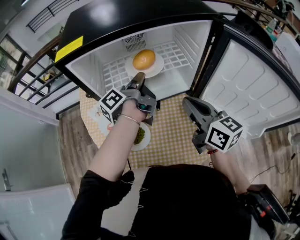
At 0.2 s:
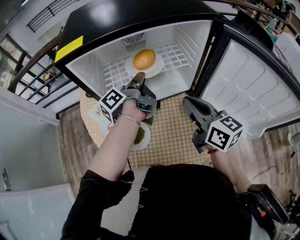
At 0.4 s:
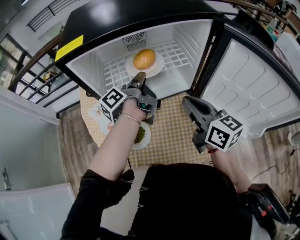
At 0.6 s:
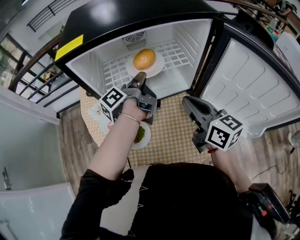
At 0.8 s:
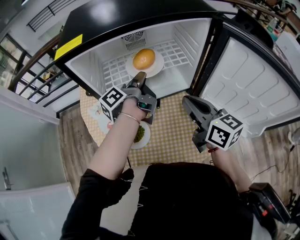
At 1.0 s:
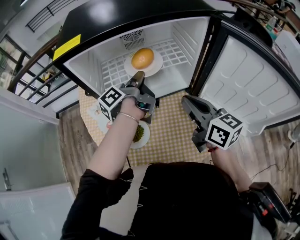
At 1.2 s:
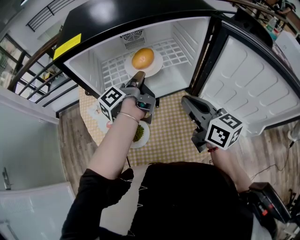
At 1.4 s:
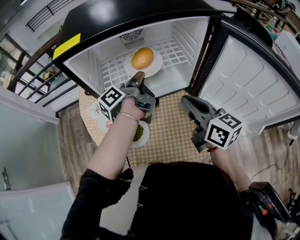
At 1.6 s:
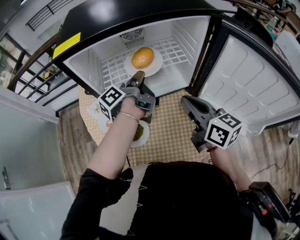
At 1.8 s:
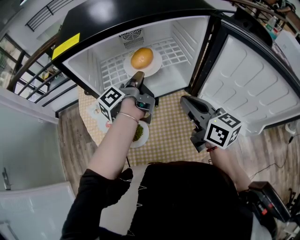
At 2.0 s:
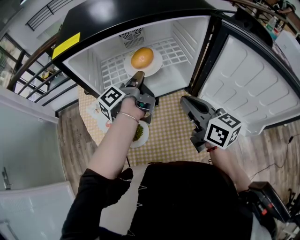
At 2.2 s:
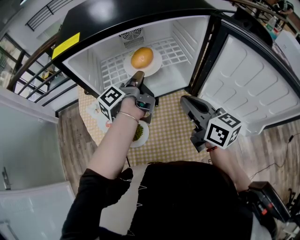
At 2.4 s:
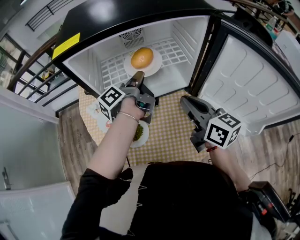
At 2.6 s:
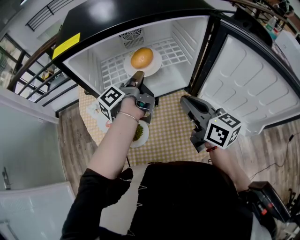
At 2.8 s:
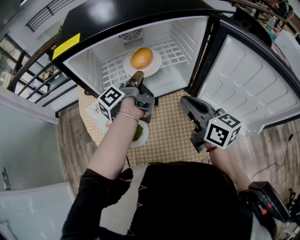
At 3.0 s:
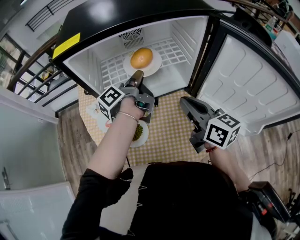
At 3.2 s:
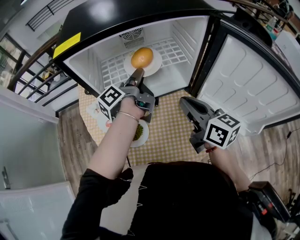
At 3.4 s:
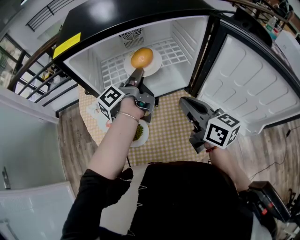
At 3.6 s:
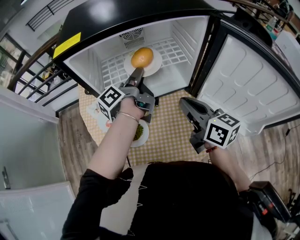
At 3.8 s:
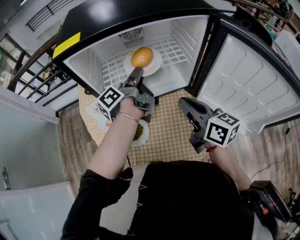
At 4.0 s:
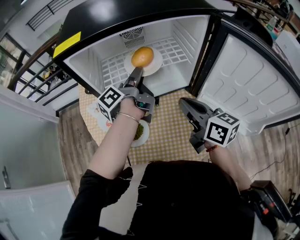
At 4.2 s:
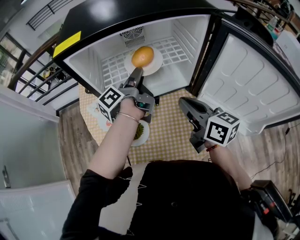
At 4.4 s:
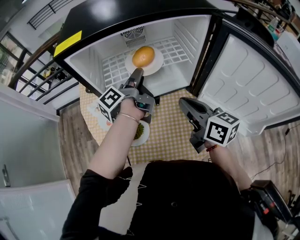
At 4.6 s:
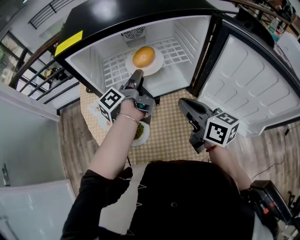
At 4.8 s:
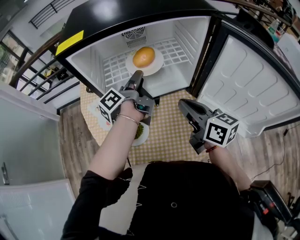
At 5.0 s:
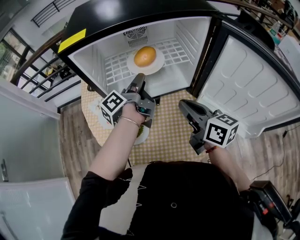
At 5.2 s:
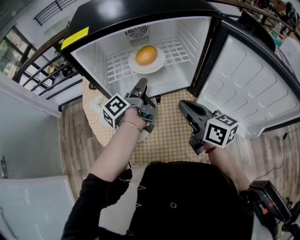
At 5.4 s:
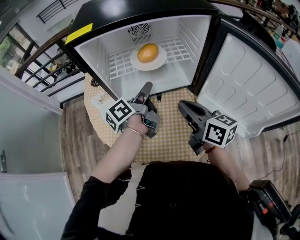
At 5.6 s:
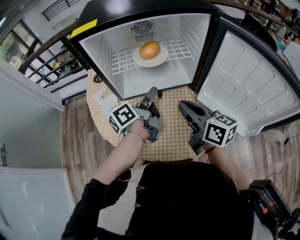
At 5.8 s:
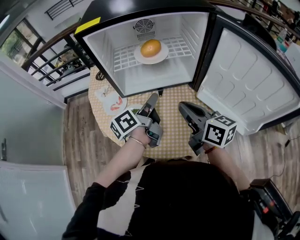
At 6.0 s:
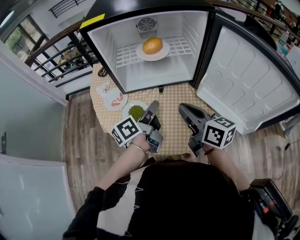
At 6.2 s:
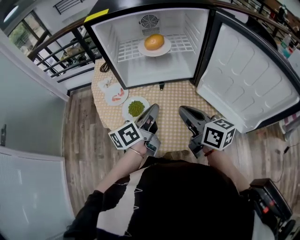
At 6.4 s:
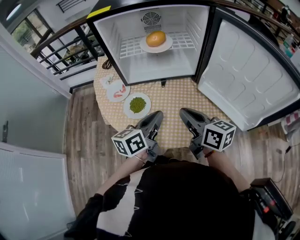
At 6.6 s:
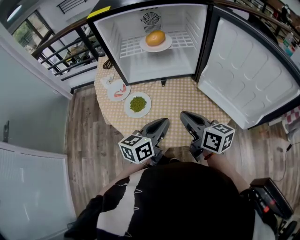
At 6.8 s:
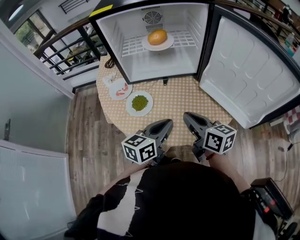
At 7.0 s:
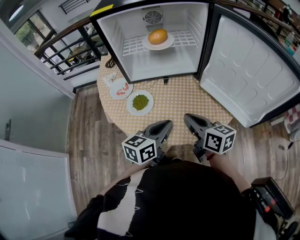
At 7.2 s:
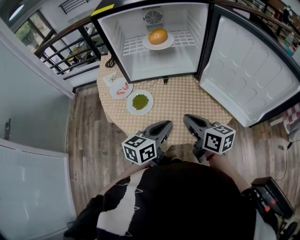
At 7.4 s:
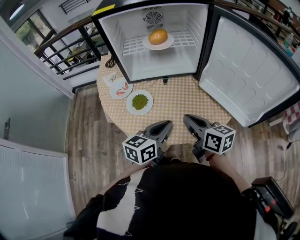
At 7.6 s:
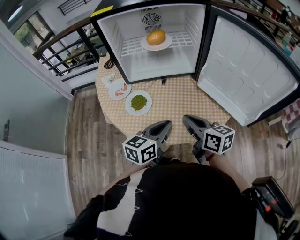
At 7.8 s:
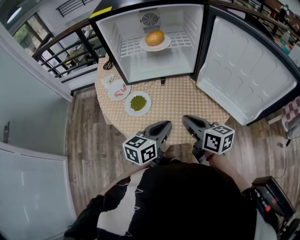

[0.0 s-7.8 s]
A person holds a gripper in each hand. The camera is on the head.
4.6 to 6.2 s: The right gripper moves roughly 10 cm.
6.2 to 7.8 s: The right gripper ends up approximately 10 cm from where it was.

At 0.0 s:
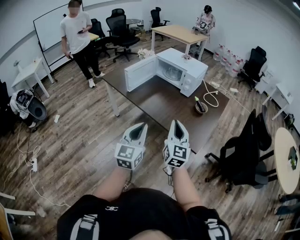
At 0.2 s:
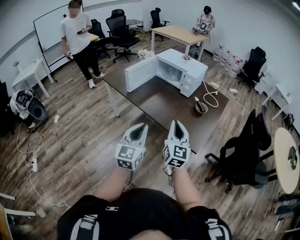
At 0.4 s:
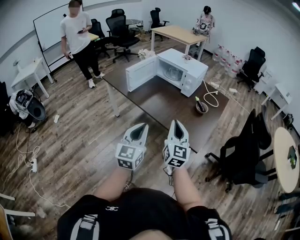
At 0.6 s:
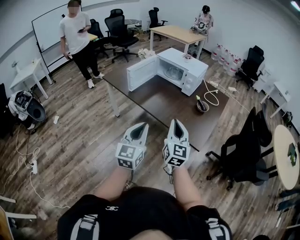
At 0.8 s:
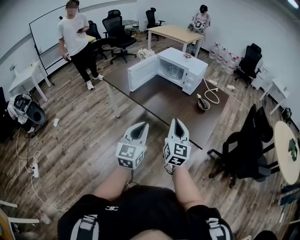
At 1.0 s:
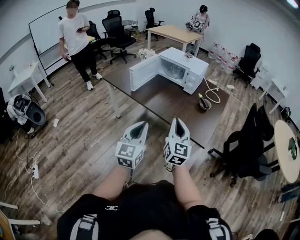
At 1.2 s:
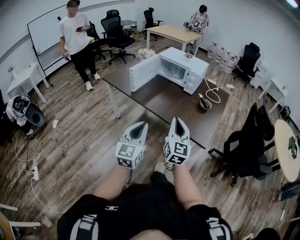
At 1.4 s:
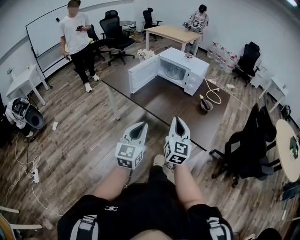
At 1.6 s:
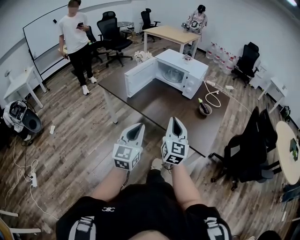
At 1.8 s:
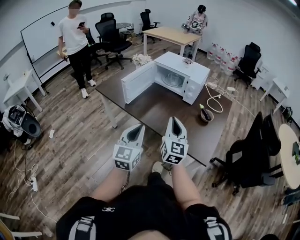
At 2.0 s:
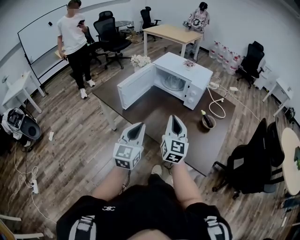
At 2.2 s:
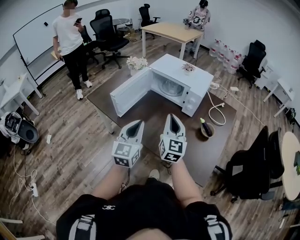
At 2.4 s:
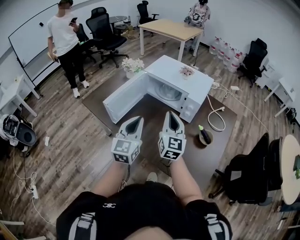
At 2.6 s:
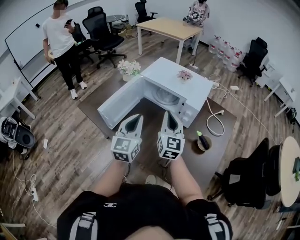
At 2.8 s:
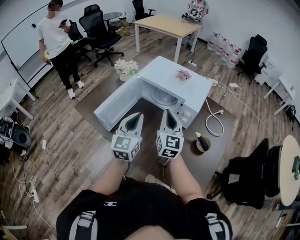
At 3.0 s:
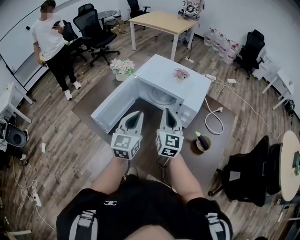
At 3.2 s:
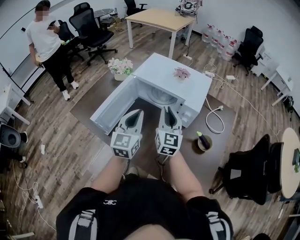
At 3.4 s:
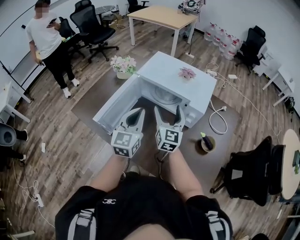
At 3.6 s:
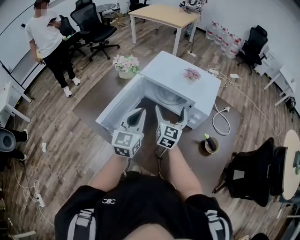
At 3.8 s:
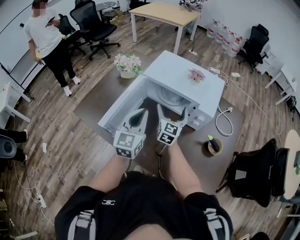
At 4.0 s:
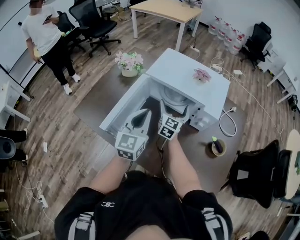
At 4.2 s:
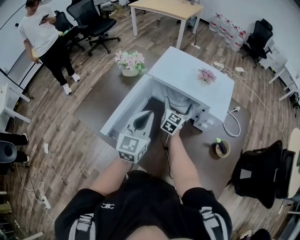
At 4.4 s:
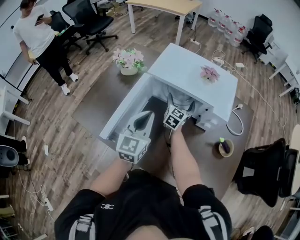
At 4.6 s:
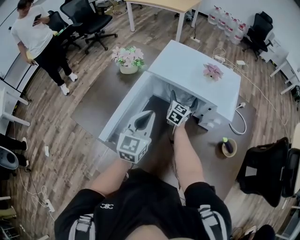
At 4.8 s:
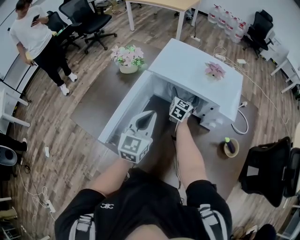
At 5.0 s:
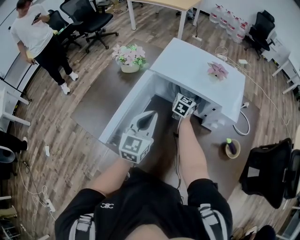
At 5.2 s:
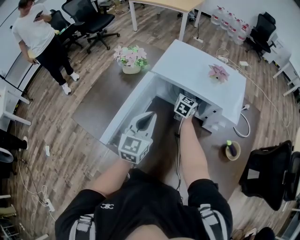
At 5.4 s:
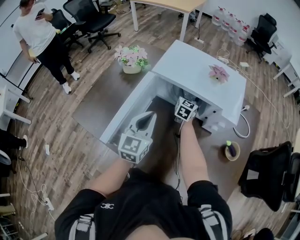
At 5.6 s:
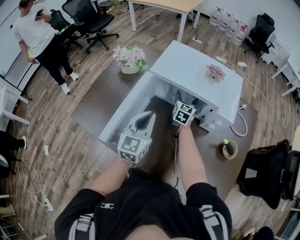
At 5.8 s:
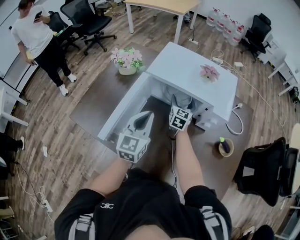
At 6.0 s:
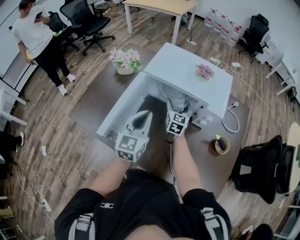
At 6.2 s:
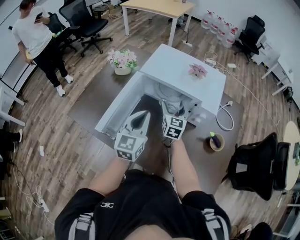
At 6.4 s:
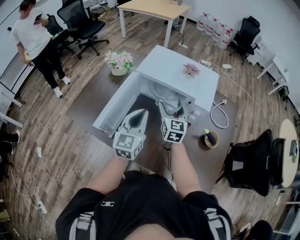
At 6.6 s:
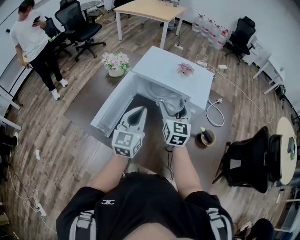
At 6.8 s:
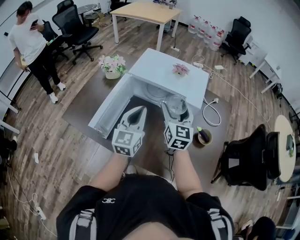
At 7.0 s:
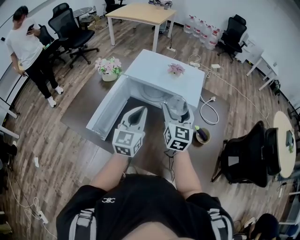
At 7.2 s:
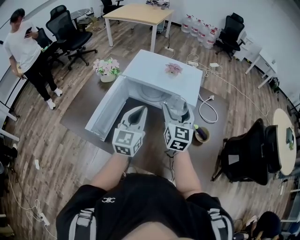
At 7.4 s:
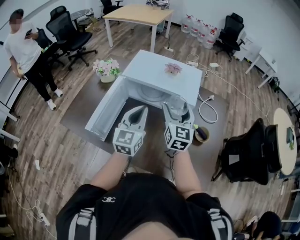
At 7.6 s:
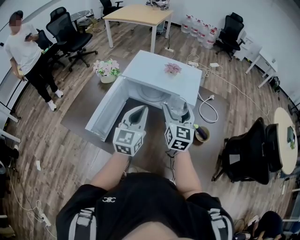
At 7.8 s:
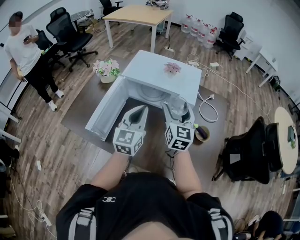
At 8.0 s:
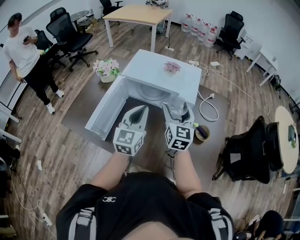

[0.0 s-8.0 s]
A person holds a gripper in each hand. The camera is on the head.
0.0 to 1.6 s: The right gripper heads to the left and forward, covering approximately 10 cm; the left gripper goes approximately 10 cm to the left.
1.6 to 3.2 s: The pair of grippers is taken forward, approximately 50 cm.
3.2 to 4.8 s: The right gripper shifts roughly 35 cm forward and downward, rotates roughly 30 degrees, and opens its fingers. Meanwhile the left gripper heads downward, to the left and forward, covering approximately 15 cm.
4.8 to 6.4 s: The left gripper moves upward and backward, approximately 10 cm; the right gripper goes some 25 cm backward and upward, and changes its angle by roughly 20 degrees.
6.4 to 8.0 s: The right gripper heads to the right, upward and backward, covering approximately 15 cm; the left gripper is displaced to the right by about 5 cm.

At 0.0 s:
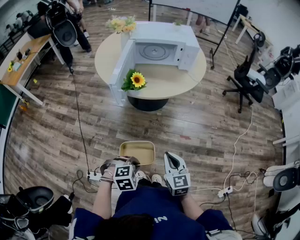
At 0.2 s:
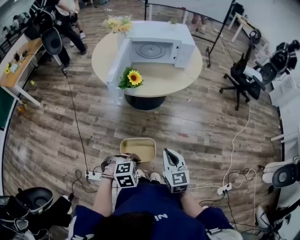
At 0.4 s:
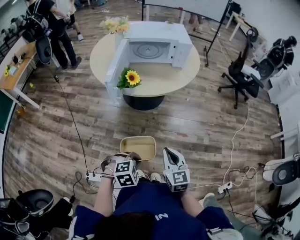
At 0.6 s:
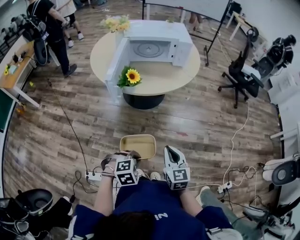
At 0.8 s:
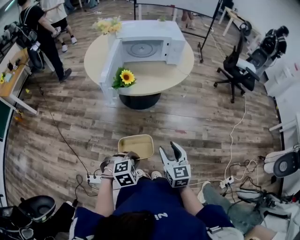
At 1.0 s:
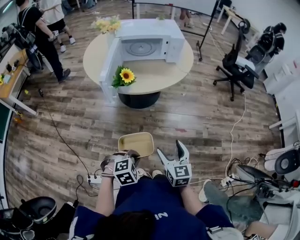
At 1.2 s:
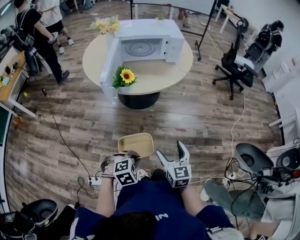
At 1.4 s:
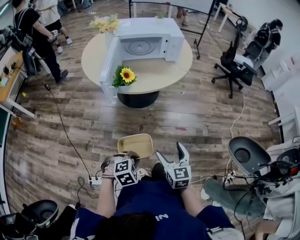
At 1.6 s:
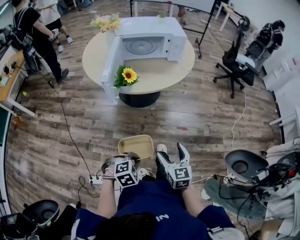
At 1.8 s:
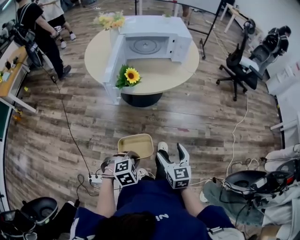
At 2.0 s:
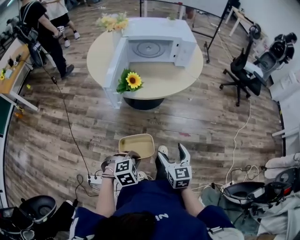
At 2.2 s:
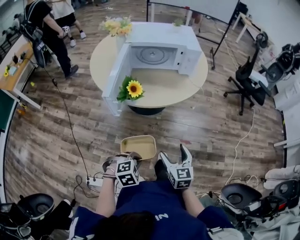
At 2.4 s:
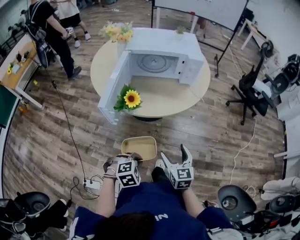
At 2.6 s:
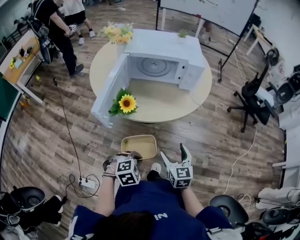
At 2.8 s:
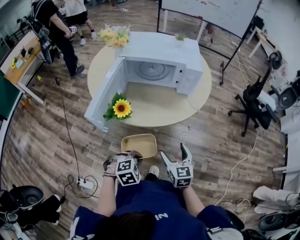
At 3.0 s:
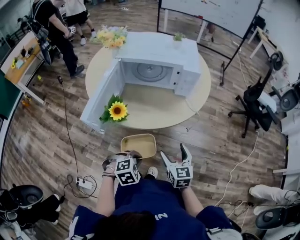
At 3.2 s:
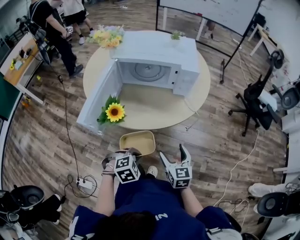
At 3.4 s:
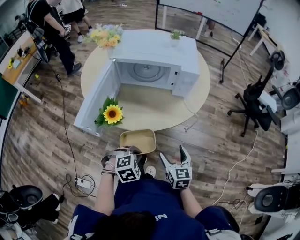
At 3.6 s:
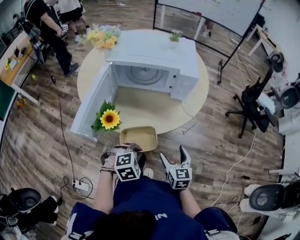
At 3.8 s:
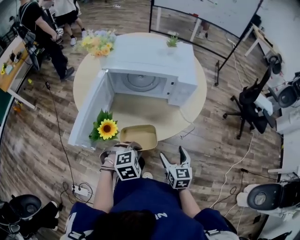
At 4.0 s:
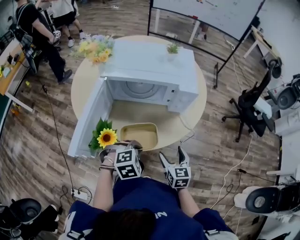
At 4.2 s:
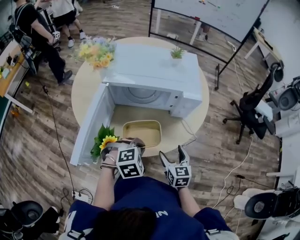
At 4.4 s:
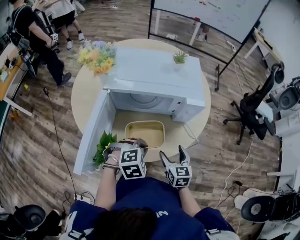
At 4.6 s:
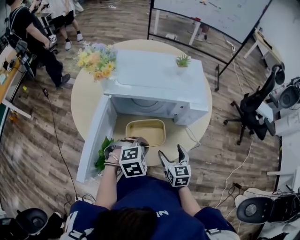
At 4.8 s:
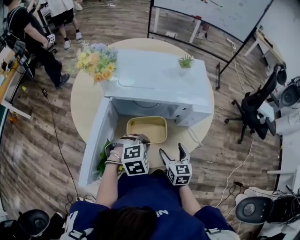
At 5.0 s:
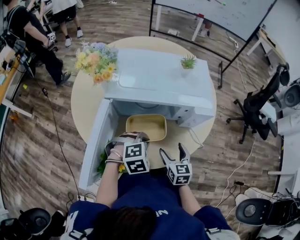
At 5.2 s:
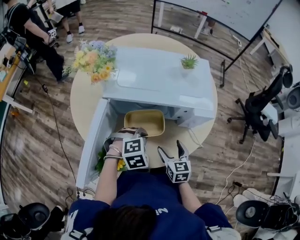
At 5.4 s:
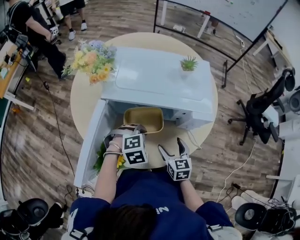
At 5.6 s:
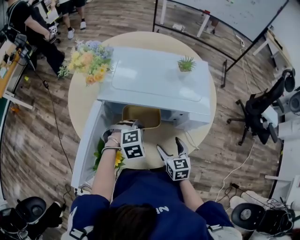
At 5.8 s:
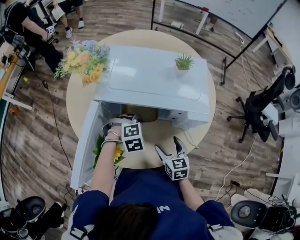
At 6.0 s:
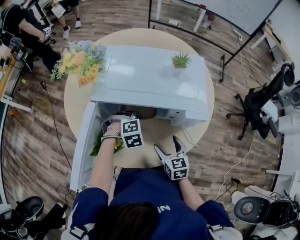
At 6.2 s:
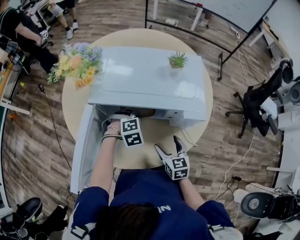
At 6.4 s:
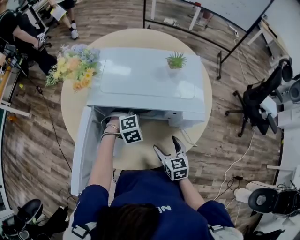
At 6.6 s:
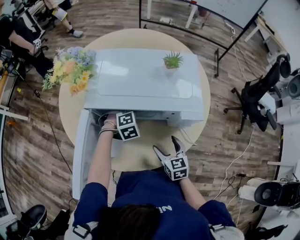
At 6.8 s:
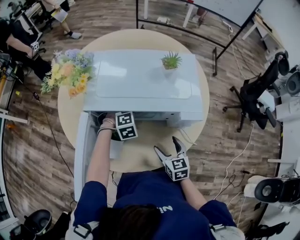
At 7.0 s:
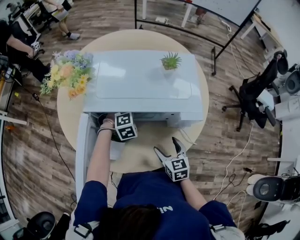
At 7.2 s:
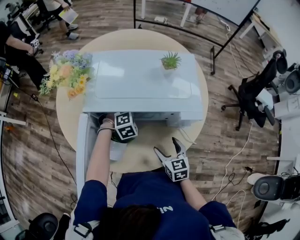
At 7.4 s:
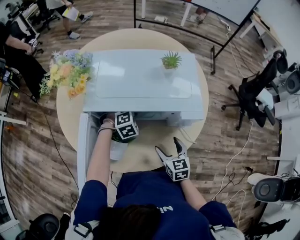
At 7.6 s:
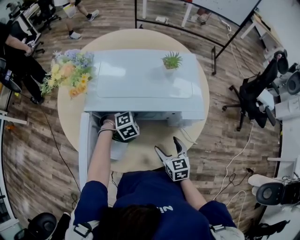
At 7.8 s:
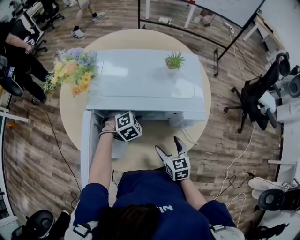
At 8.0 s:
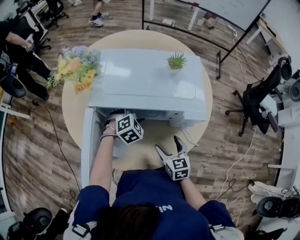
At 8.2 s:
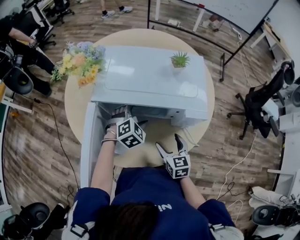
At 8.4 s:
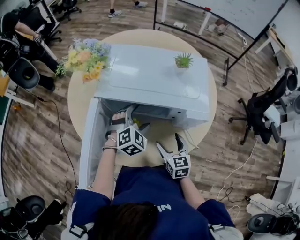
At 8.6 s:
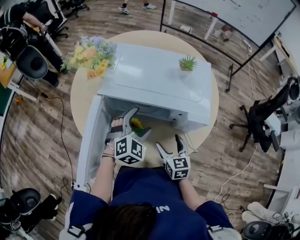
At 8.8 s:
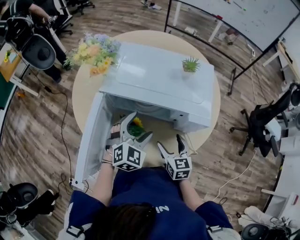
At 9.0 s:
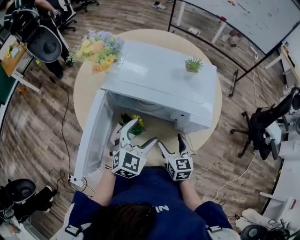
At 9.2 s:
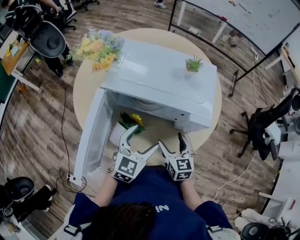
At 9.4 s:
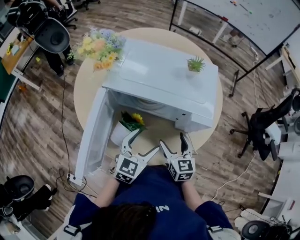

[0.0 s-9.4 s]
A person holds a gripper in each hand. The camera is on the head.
0.0 to 1.6 s: The right gripper opens its fingers.
1.6 to 3.2 s: Both grippers move forward, some 30 cm.
3.2 to 4.8 s: The right gripper goes about 20 cm forward and to the left; the left gripper moves forward, about 25 cm.
4.8 to 6.2 s: The left gripper moves forward and downward, about 15 cm.
6.2 to 7.8 s: The left gripper moves forward, some 5 cm, and opens up.
7.8 to 9.4 s: The left gripper travels backward and upward by some 20 cm, and rolls counterclockwise, seen from behind, by approximately 50 degrees. The right gripper is displaced upward by roughly 5 cm.
